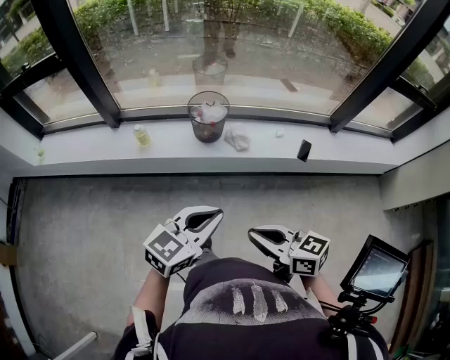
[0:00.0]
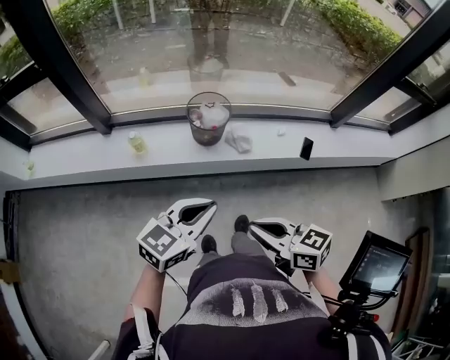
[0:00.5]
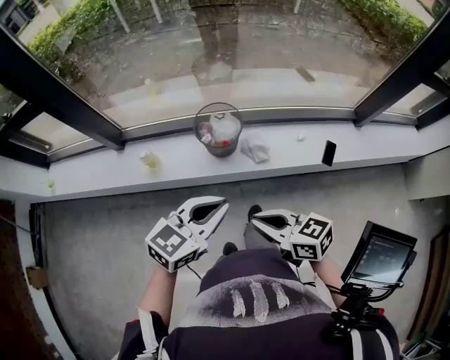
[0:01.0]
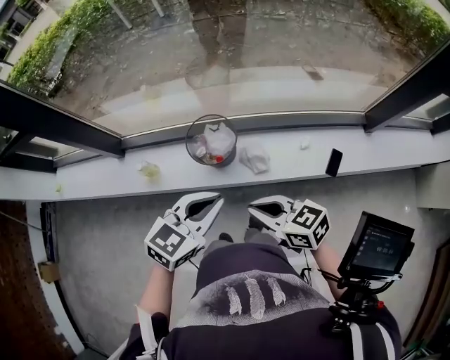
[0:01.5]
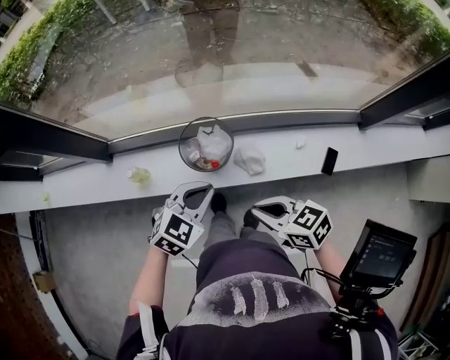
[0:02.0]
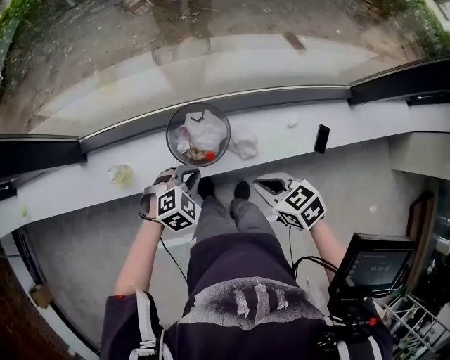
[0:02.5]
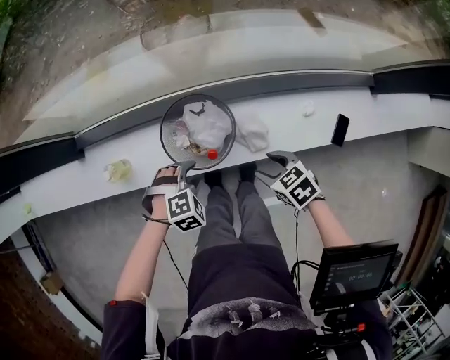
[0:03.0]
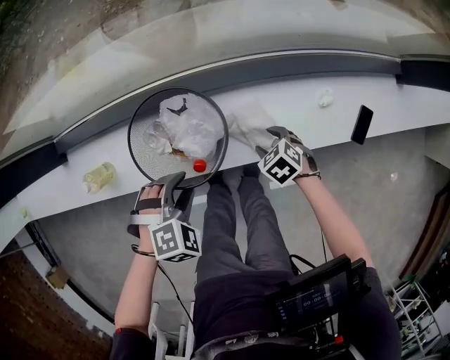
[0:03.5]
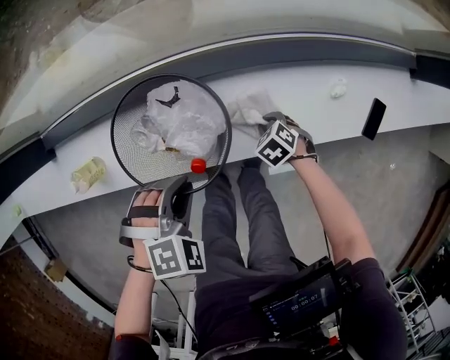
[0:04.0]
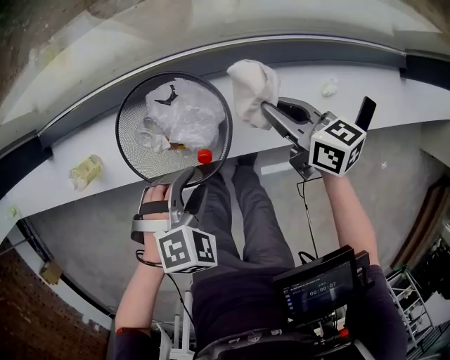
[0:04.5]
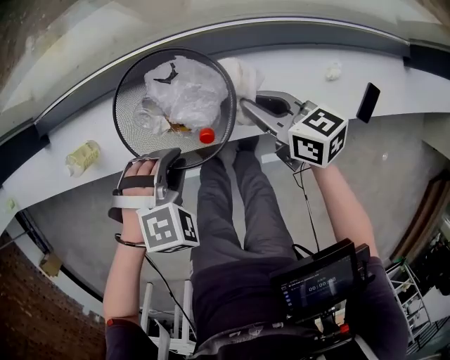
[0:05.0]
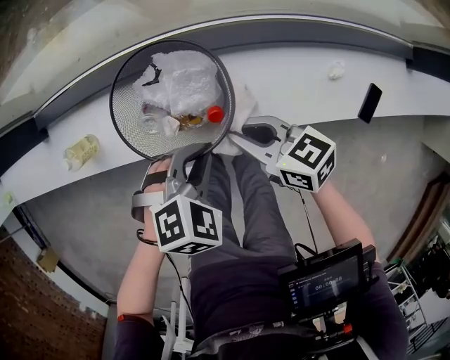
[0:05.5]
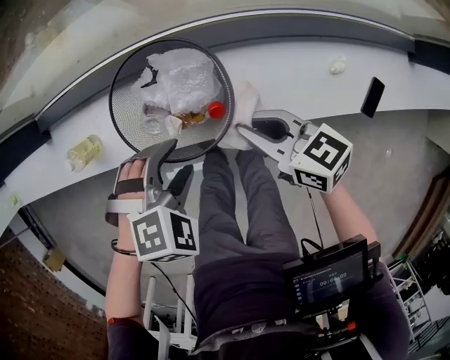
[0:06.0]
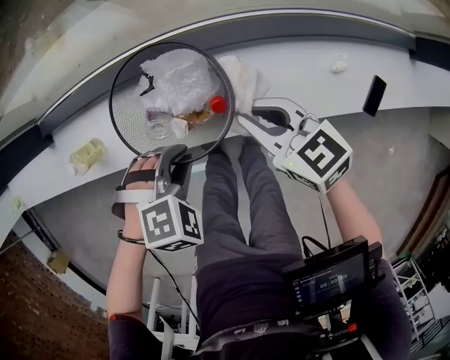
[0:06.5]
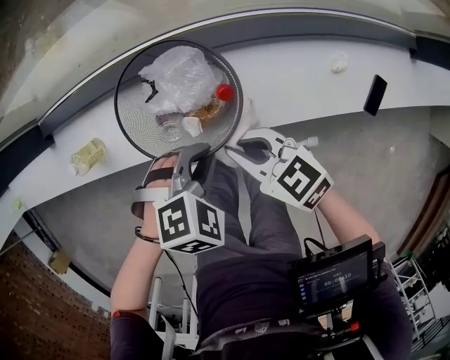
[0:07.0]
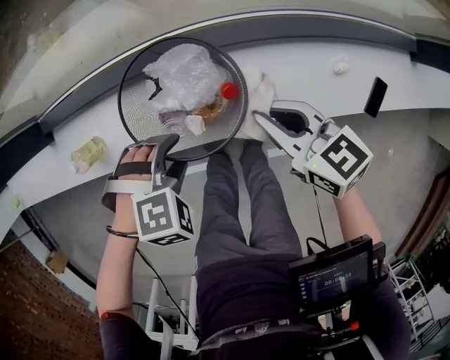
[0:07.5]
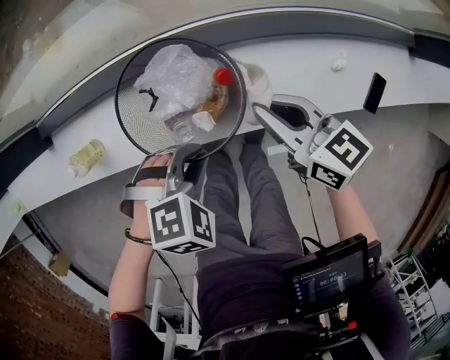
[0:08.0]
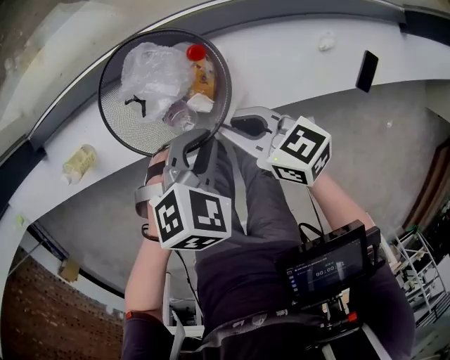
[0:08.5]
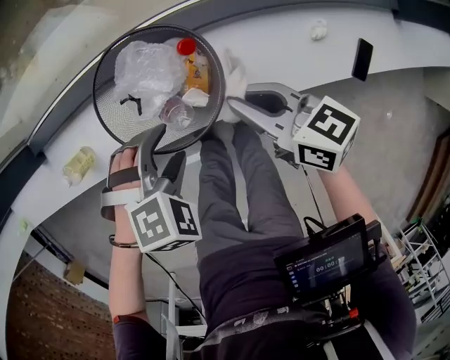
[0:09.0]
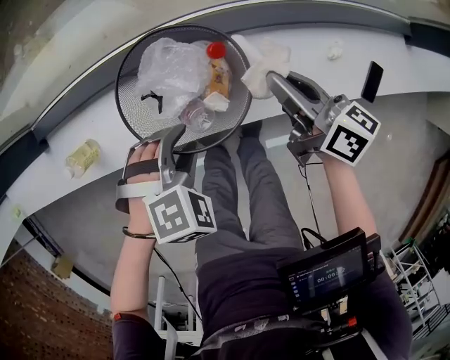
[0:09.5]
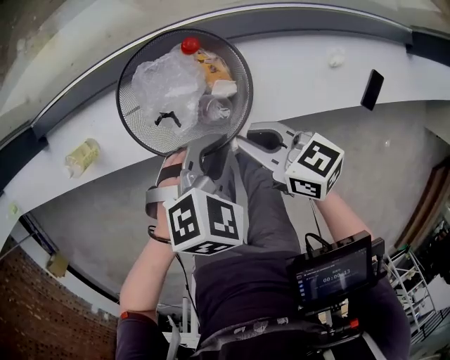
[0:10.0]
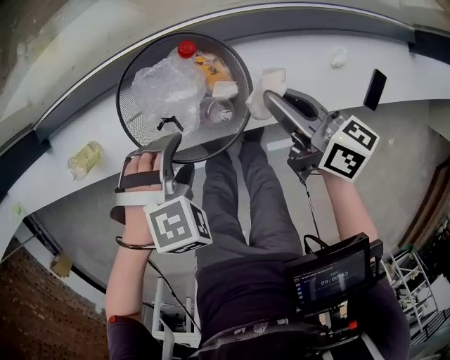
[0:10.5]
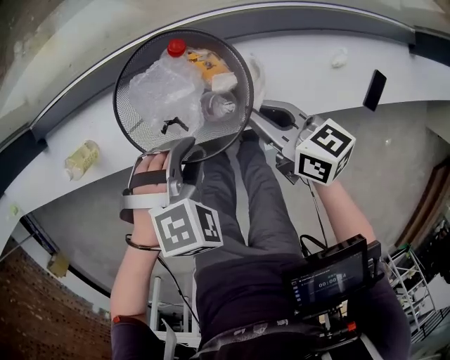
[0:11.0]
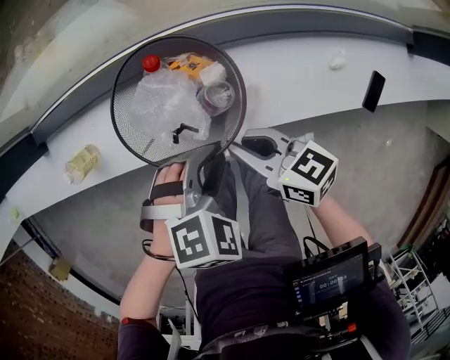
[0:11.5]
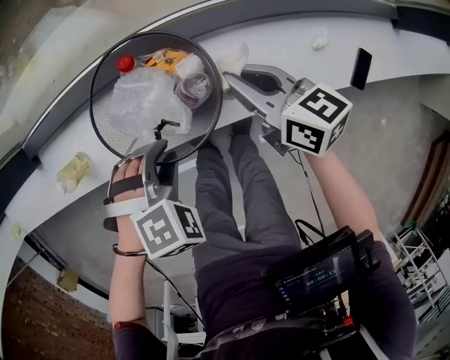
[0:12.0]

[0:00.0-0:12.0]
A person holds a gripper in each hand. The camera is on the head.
0:00.0 to 0:02.0: The two grippers go about 35 cm forward. The left gripper swivels approximately 30 degrees.
0:02.0 to 0:04.0: The right gripper heads downward, covering approximately 50 cm, points its fingers roughly 50 degrees further downward, and opens, then closes once more, while the left gripper shifts about 25 cm downward, tips its fingers downward by roughly 30 degrees, and opens, then closes once more.
0:04.0 to 0:06.0: The left gripper opens. Meanwhile the right gripper heads upward, covering roughly 25 cm, and points its fingers some 50 degrees further upward.
0:06.0 to 0:08.0: The right gripper shifts by about 5 cm. The left gripper closes.
0:08.0 to 0:10.0: The left gripper moves about 5 cm, and opens, then closes again. Meanwhile the right gripper moves roughly 10 cm.
0:10.0 to 0:12.0: The left gripper ends up some 5 cm from where it was, rotates roughly 30 degrees, and opens, then closes again; the right gripper moves approximately 10 cm.

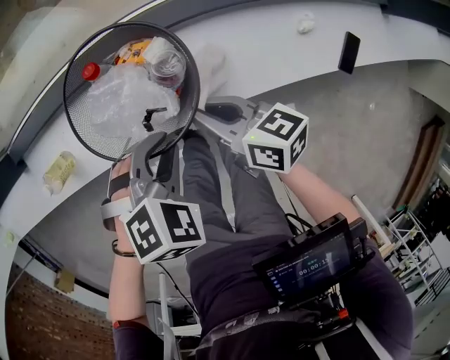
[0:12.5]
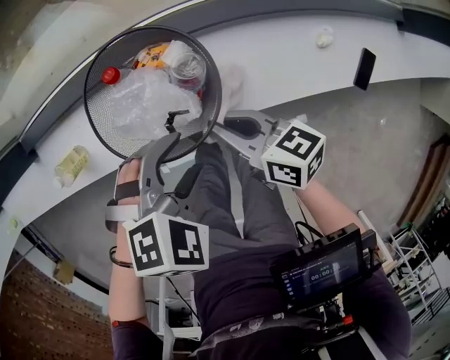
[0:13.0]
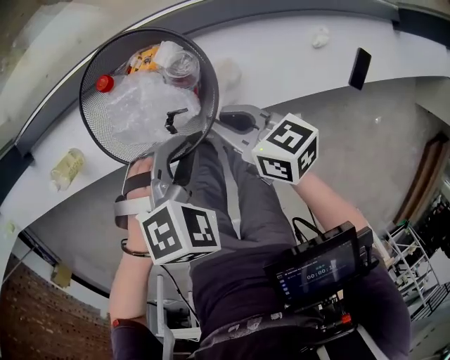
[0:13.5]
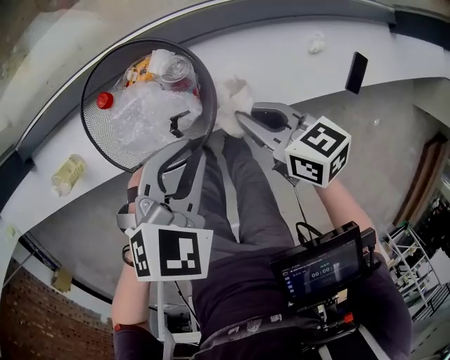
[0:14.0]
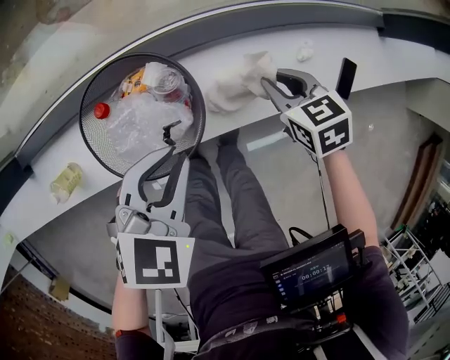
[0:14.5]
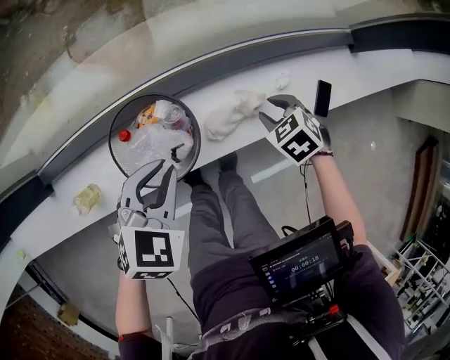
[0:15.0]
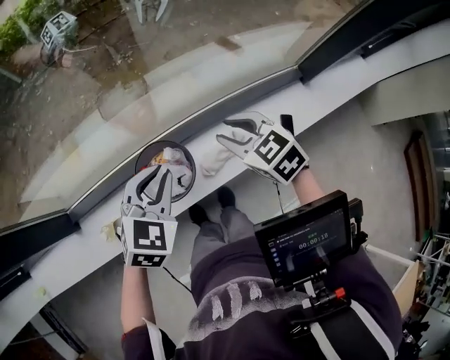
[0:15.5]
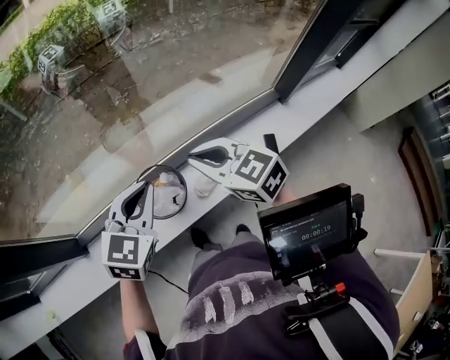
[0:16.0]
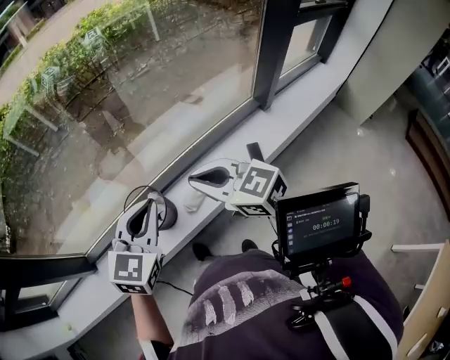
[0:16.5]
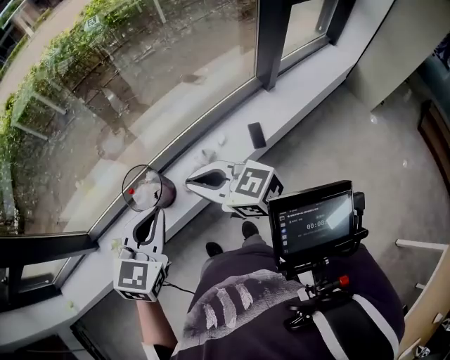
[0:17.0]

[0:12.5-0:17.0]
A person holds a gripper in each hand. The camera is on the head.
0:12.5 to 0:14.5: The right gripper moves roughly 15 cm, and rotates some 40 degrees. The left gripper shifts approximately 5 cm upward, changes its angle by some 30 degrees, and opens, then closes again.
0:14.5 to 0:17.0: The grippers both shift upward and backward by approximately 40 cm. The right gripper tilts its fingers roughly 50 degrees upward, while the left gripper turns by some 20 degrees.

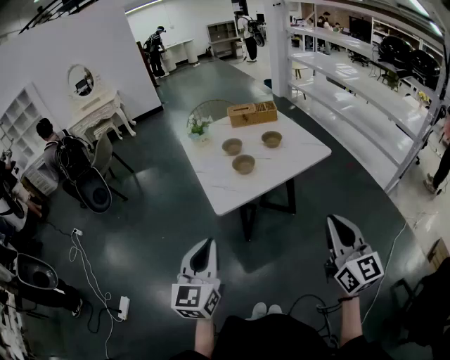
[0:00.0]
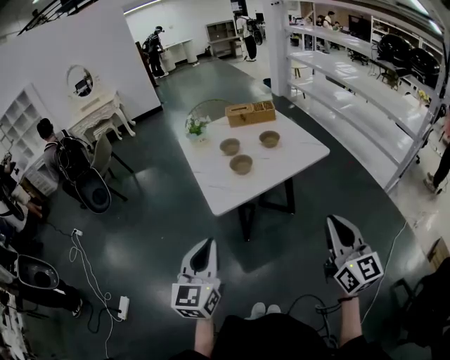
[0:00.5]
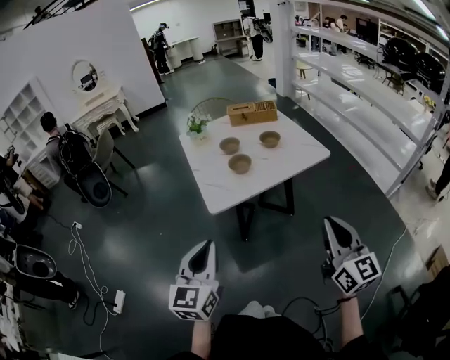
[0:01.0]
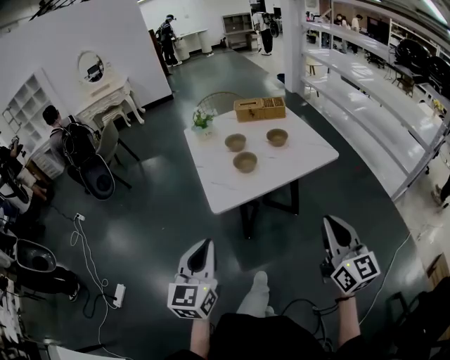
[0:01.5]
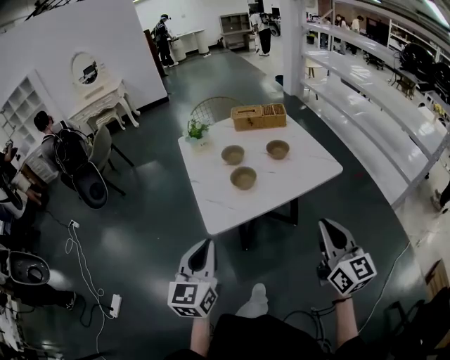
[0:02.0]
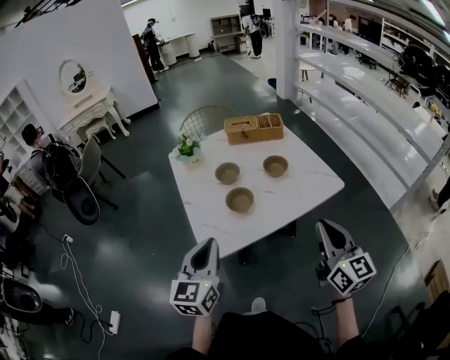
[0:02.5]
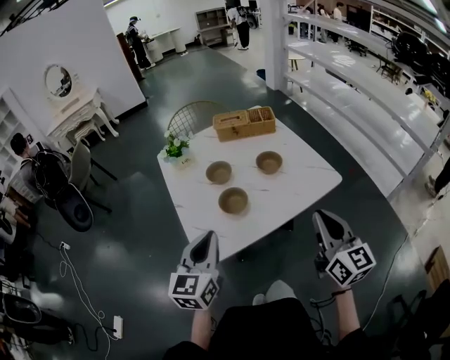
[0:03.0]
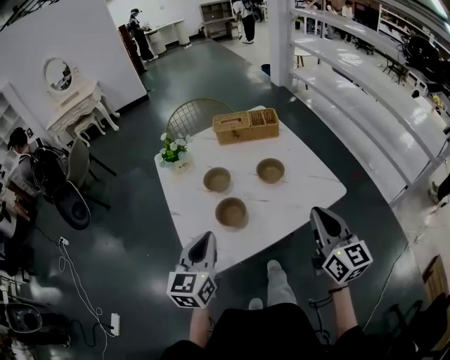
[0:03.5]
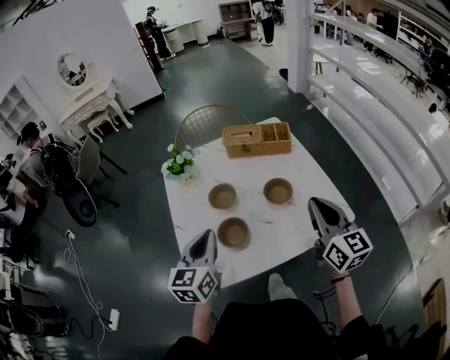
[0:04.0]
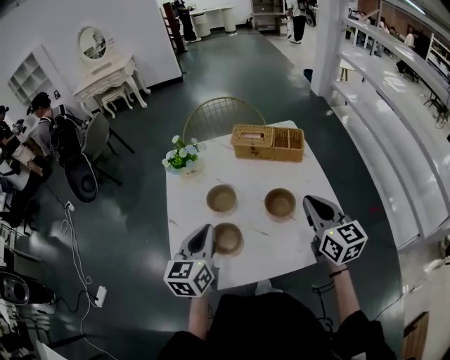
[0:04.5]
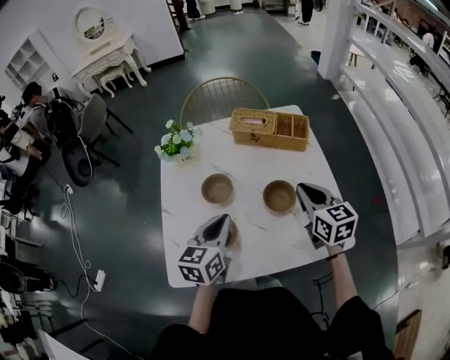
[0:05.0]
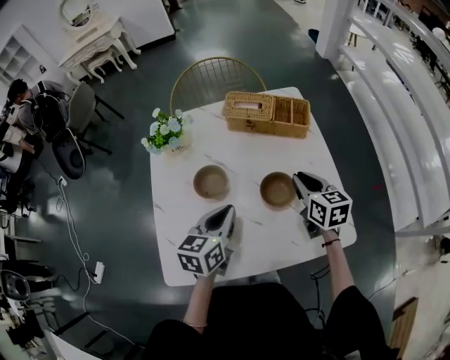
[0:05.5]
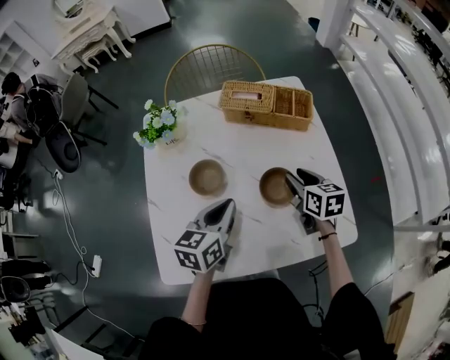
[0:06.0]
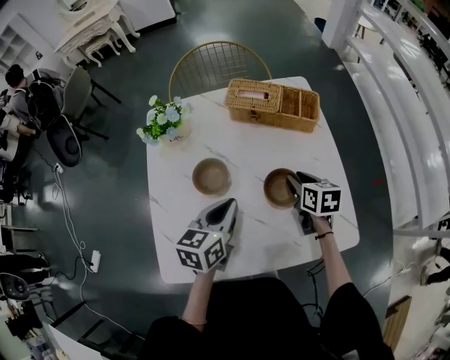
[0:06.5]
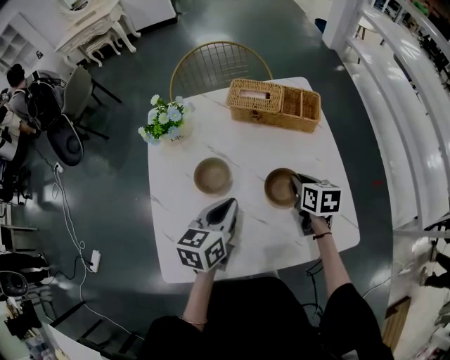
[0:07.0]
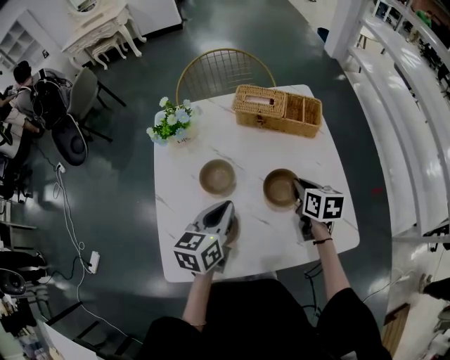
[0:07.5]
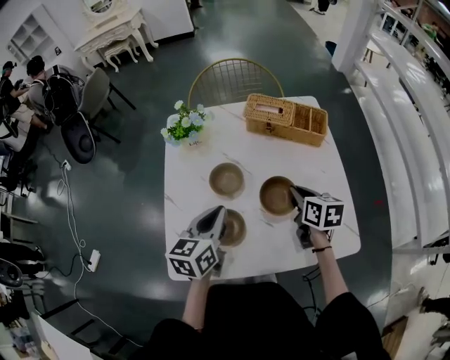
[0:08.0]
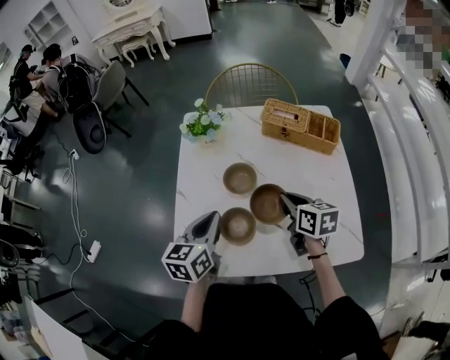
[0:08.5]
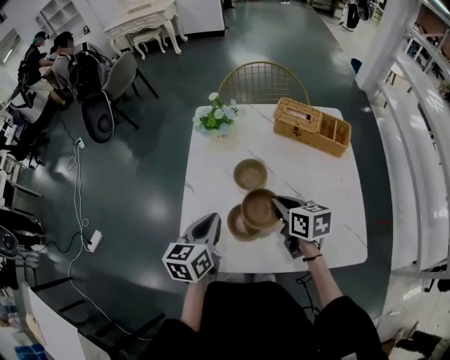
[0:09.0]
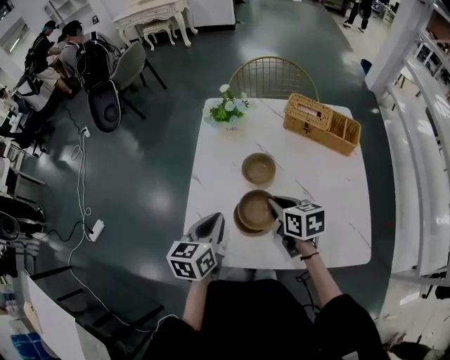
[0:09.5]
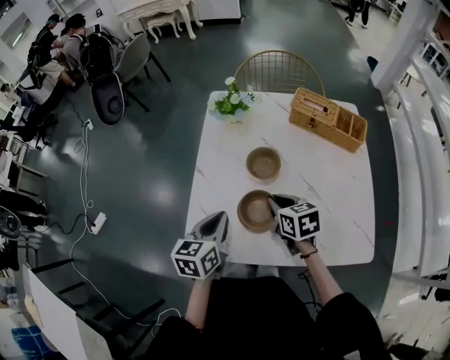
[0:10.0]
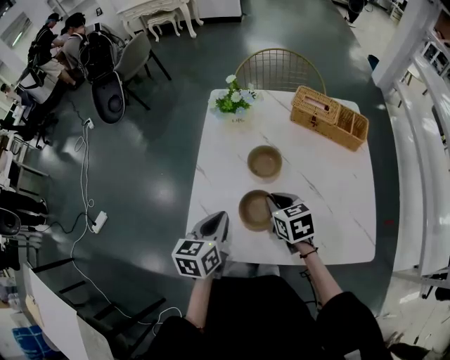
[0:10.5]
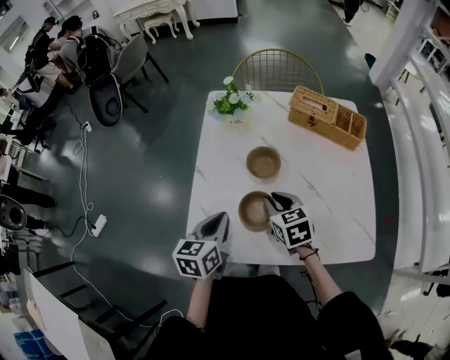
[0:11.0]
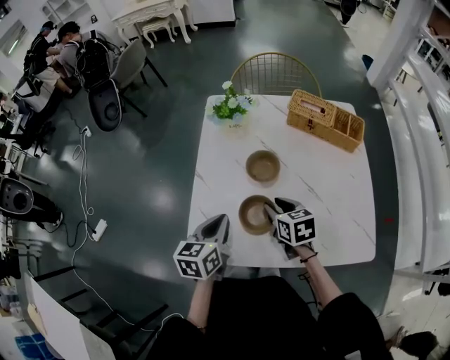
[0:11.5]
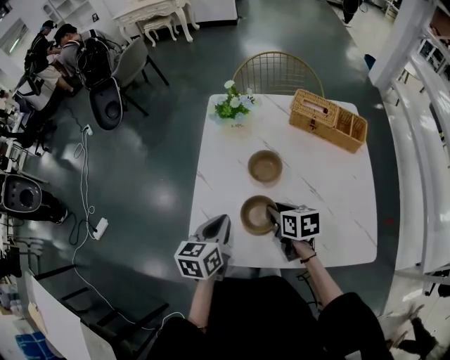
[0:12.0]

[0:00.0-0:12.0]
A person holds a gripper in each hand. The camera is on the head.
0:00.0 to 0:02.0: The grippers both shift forward by roughly 15 cm.
0:02.0 to 0:04.0: The grippers both shift forward by approximately 30 cm.
0:04.0 to 0:06.0: The right gripper goes some 30 cm downward and forward, angles its fingers downward, by some 30 degrees, and opens its fingers, while the left gripper goes approximately 20 cm forward, downward and to the right, and changes its angle by about 20 degrees.
0:06.0 to 0:08.0: Both grippers travel together to the left, about 5 cm. The right gripper closes up.
0:08.0 to 0:10.0: The left gripper heads to the left and backward, covering about 10 cm; the right gripper moves to the left, roughly 20 cm, and turns by some 30 degrees.
0:10.0 to 0:12.0: The grippers make only small movements.
